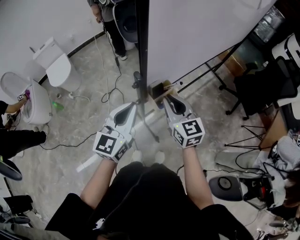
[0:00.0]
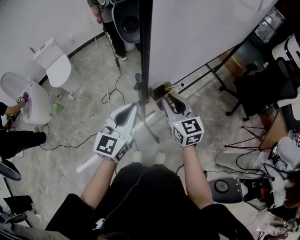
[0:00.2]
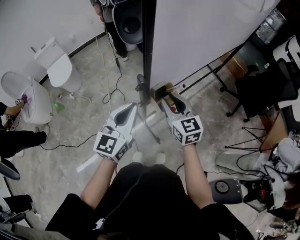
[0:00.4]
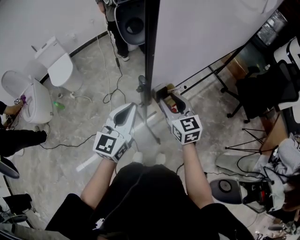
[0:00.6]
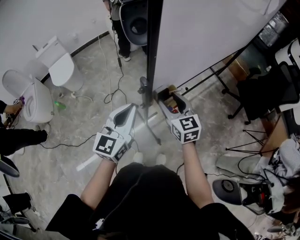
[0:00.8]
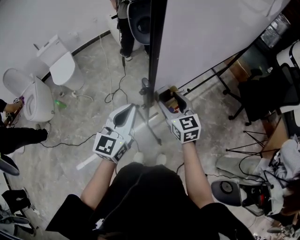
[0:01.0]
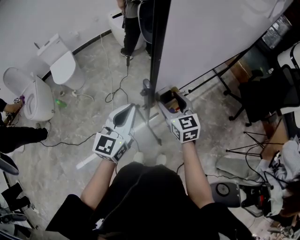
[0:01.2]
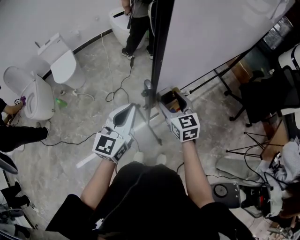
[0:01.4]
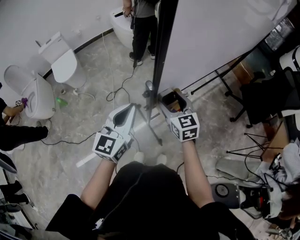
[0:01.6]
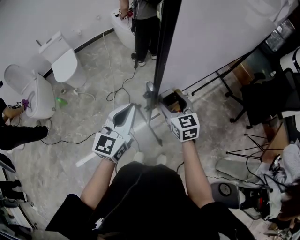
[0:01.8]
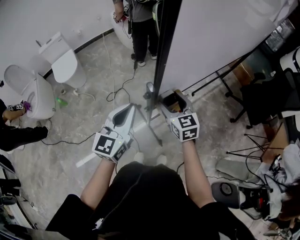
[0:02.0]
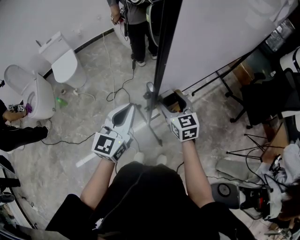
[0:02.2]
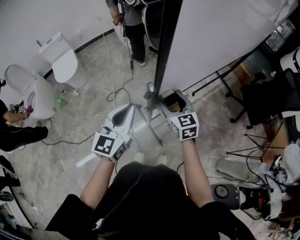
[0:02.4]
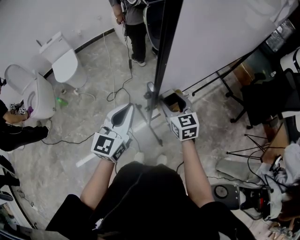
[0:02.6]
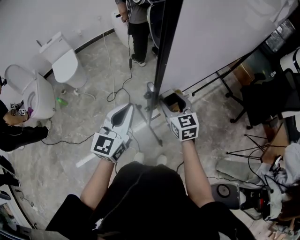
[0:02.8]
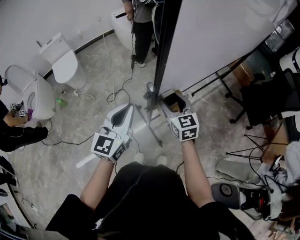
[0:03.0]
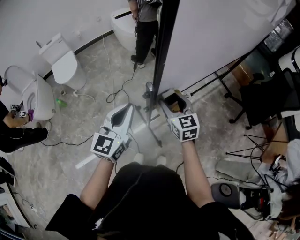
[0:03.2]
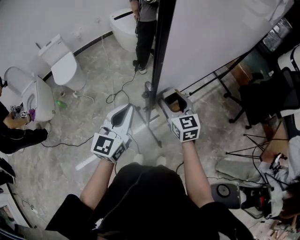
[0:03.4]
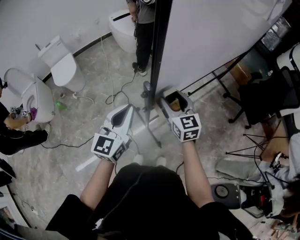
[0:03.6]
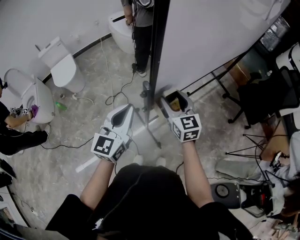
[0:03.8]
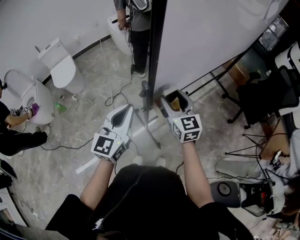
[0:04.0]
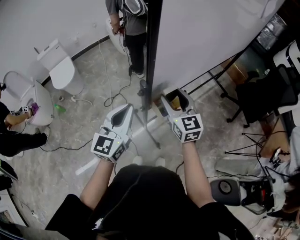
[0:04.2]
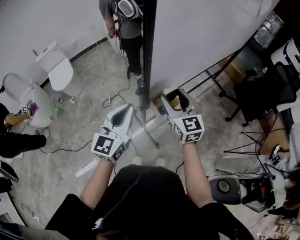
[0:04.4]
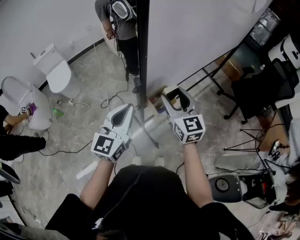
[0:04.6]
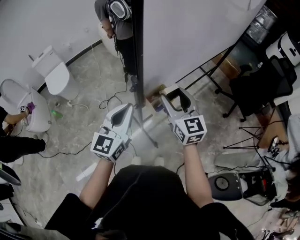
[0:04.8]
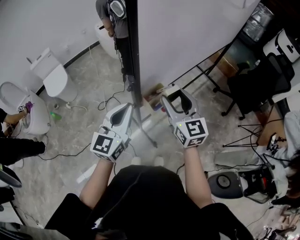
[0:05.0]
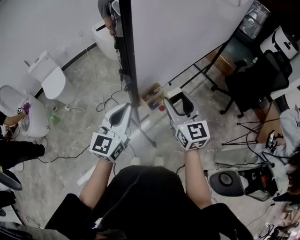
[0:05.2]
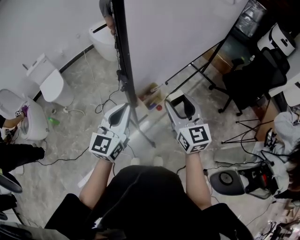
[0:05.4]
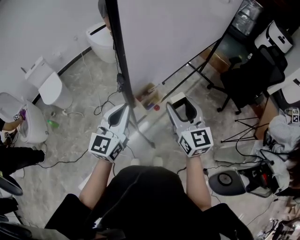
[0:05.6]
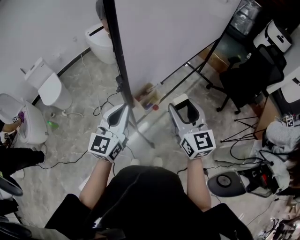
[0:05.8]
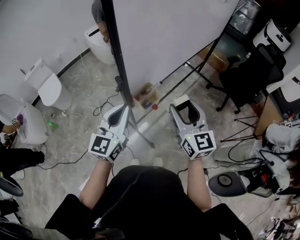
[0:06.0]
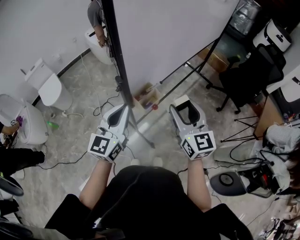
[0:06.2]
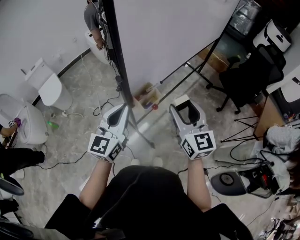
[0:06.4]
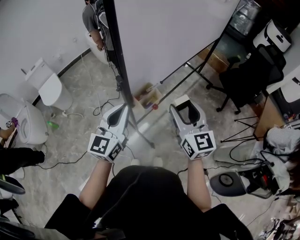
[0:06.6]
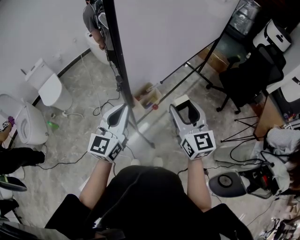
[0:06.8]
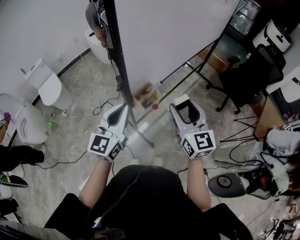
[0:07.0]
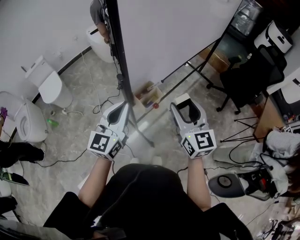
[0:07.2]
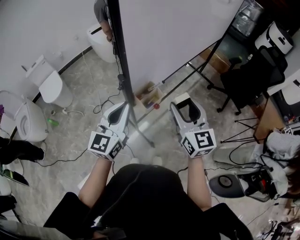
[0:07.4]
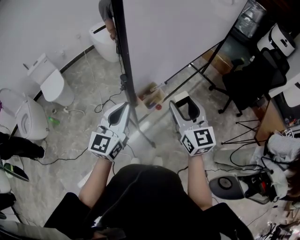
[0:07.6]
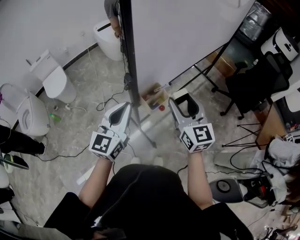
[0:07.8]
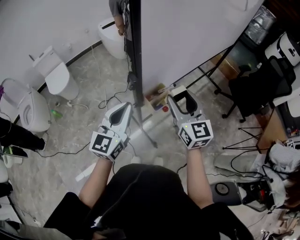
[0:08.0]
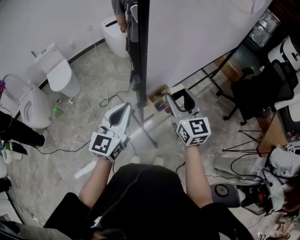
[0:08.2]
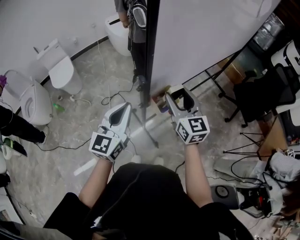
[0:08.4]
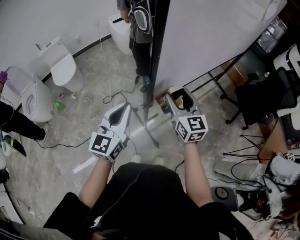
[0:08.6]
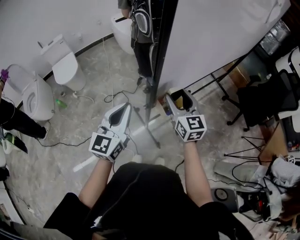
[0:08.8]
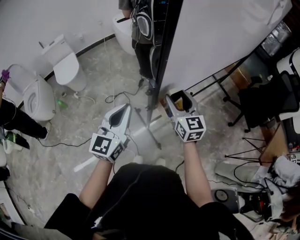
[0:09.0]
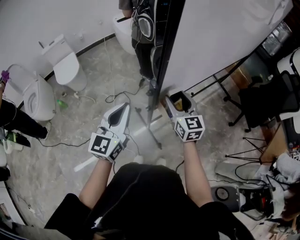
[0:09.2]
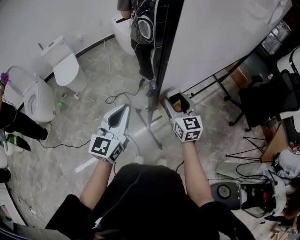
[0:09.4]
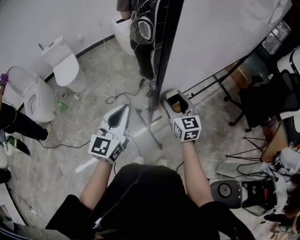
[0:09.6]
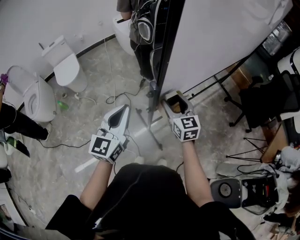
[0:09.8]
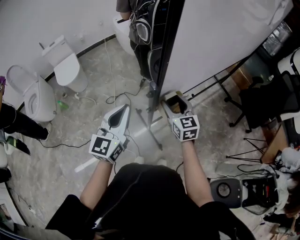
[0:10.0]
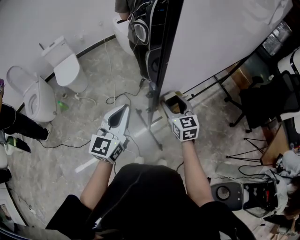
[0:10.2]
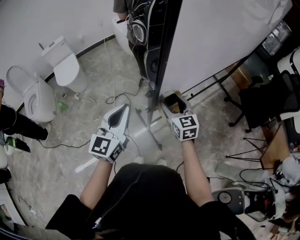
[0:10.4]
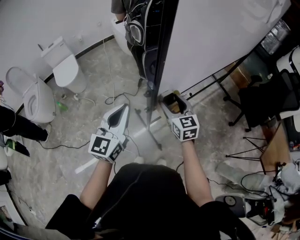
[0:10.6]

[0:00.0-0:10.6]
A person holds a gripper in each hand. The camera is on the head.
0:00.0 to 0:01.6: The left gripper moves roughly 5 cm. The right gripper heads forward, covering about 5 cm, and opens up.
0:01.6 to 0:03.0: The grippers make only small movements.
0:03.0 to 0:04.6: The left gripper changes place by some 5 cm. Meanwhile the right gripper heads upward and to the right, covering some 10 cm.
0:04.6 to 0:06.0: The right gripper travels to the right and backward by some 15 cm; the left gripper heads to the right, covering about 5 cm.
0:06.0 to 0:07.6: The grippers make only small movements.
0:07.6 to 0:09.0: The left gripper travels to the left by about 10 cm; the right gripper heads to the left, forward and downward, covering some 15 cm.
0:09.0 to 0:10.6: The right gripper heads downward, covering some 5 cm.

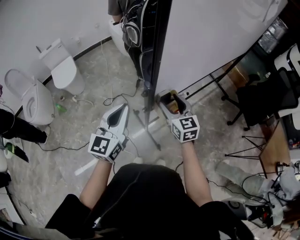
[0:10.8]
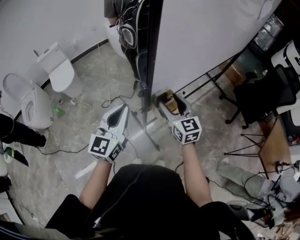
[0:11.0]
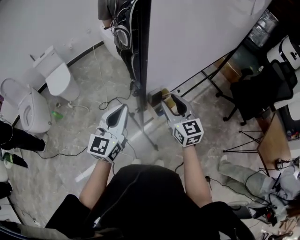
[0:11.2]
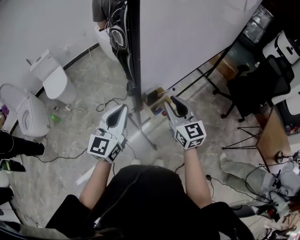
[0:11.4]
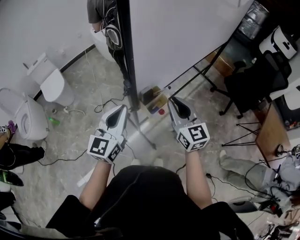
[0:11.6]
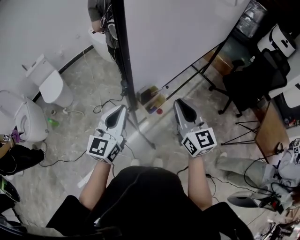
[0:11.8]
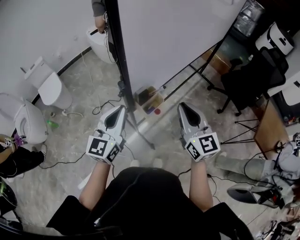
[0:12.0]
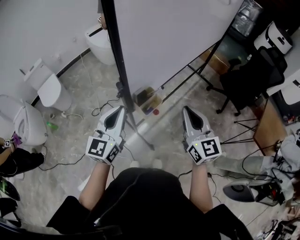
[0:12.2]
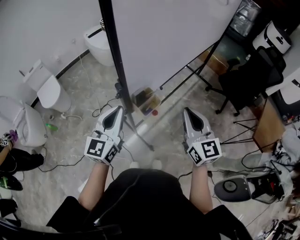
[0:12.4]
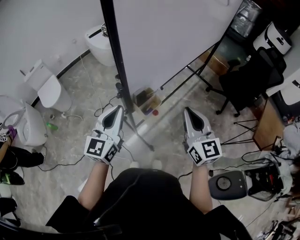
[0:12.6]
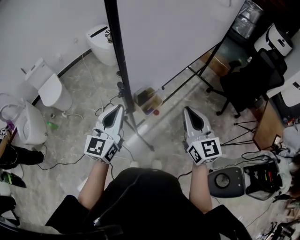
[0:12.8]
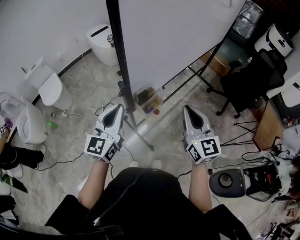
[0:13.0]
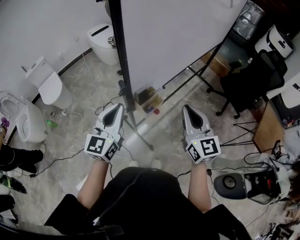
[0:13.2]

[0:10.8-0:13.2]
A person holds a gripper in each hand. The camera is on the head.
0:10.8 to 0:12.0: The left gripper is displaced to the right by about 5 cm; the right gripper travels to the right, upward and backward by roughly 20 cm, and closes its fingers.
0:12.0 to 0:13.2: The grippers move only a little.

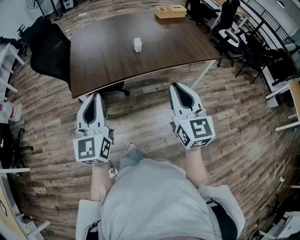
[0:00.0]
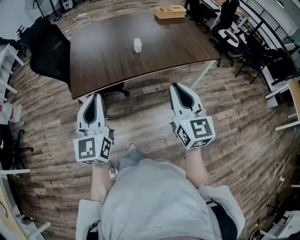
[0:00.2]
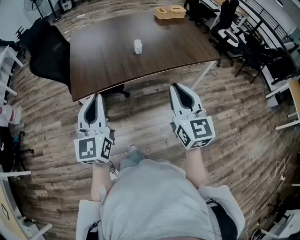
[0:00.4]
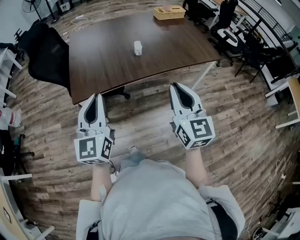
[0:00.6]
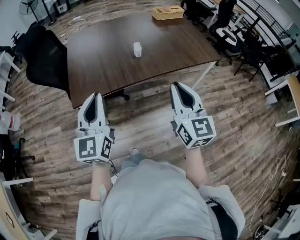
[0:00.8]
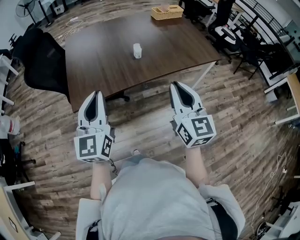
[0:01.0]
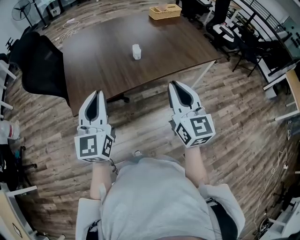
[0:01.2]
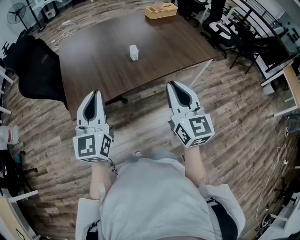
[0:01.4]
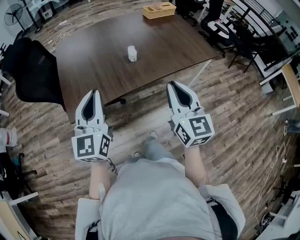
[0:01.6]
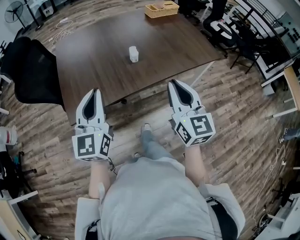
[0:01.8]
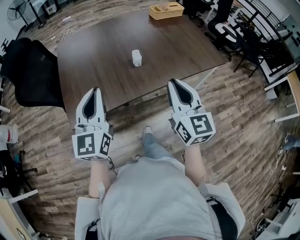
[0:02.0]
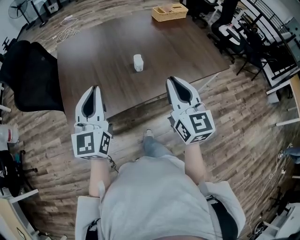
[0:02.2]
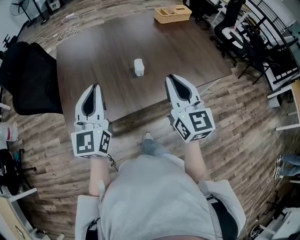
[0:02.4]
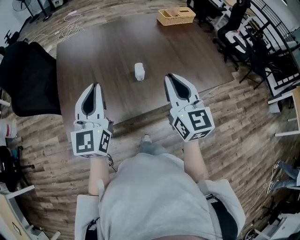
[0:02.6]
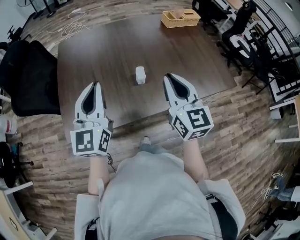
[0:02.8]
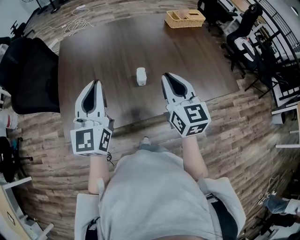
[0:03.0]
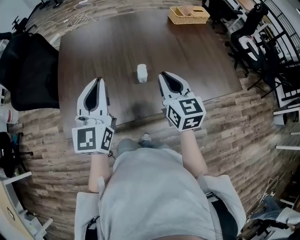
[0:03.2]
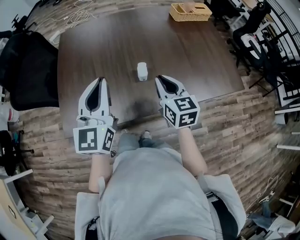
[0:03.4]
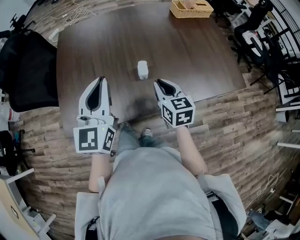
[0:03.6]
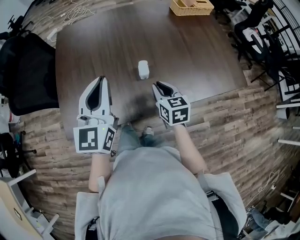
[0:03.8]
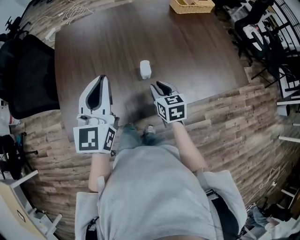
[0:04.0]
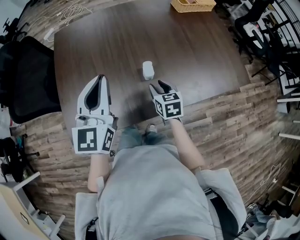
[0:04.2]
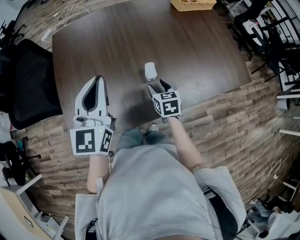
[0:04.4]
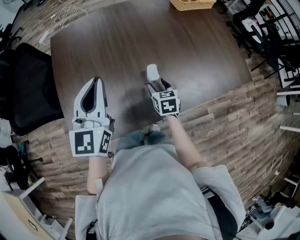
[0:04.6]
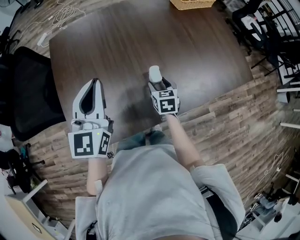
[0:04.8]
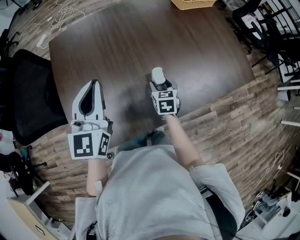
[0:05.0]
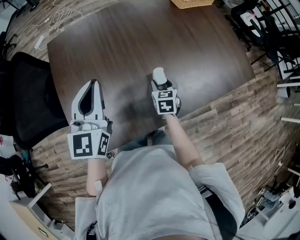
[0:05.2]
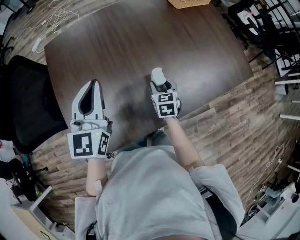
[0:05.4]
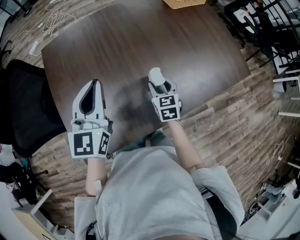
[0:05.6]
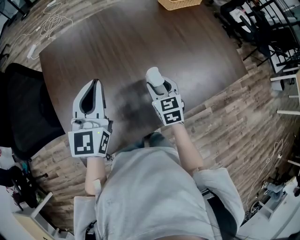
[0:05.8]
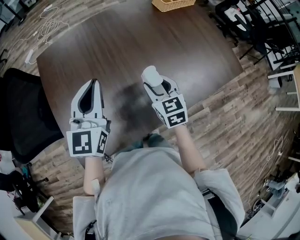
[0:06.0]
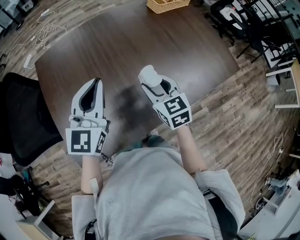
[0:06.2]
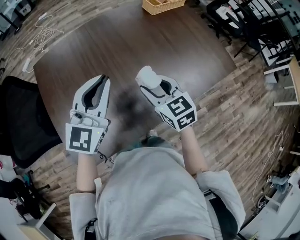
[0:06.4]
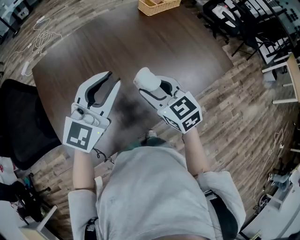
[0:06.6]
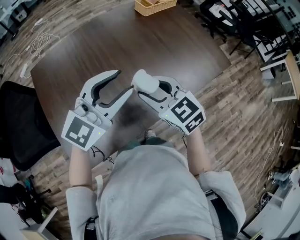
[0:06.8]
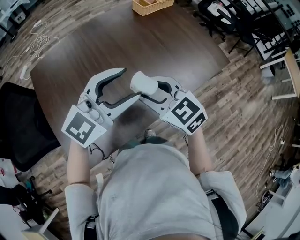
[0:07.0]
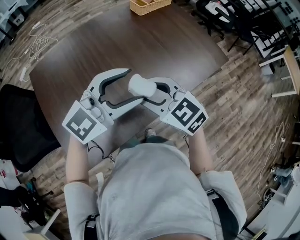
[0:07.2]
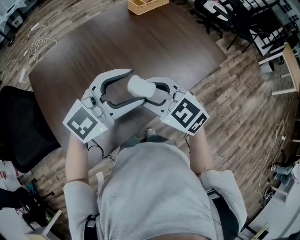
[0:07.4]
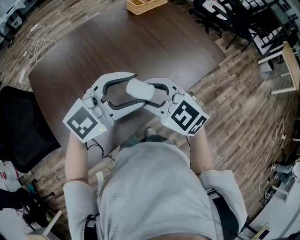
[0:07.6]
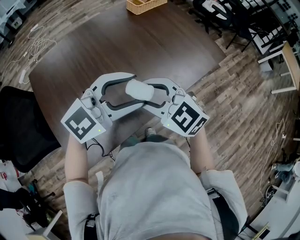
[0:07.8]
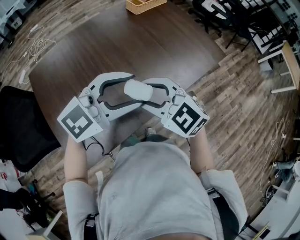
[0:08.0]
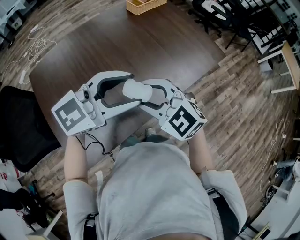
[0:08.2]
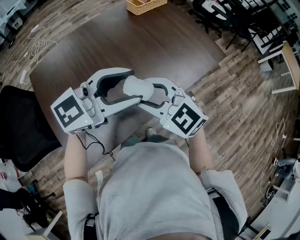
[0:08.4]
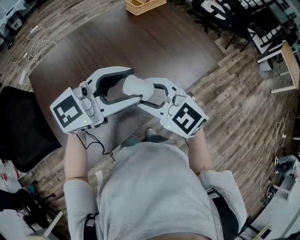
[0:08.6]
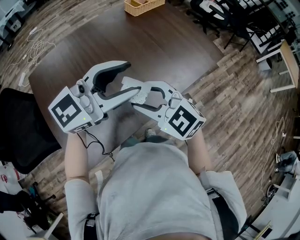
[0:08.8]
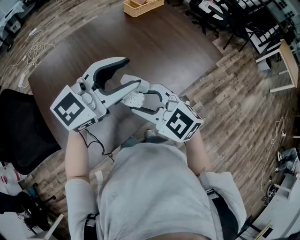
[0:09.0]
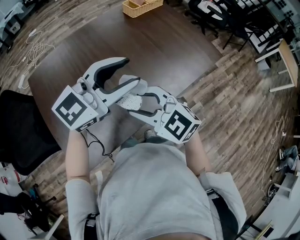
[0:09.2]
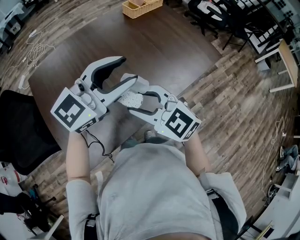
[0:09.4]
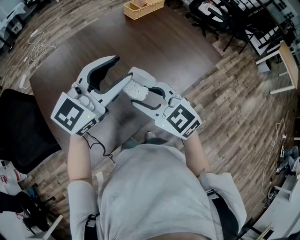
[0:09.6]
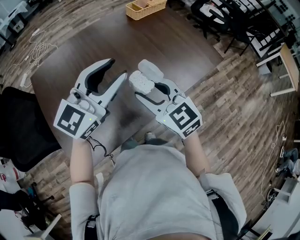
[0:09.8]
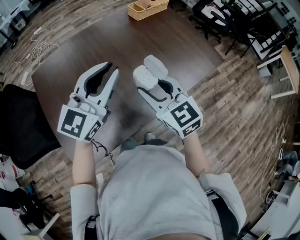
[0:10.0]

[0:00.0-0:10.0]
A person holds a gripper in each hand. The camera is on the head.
0:00.0 to 0:01.4: The two grippers go some 10 cm forward.
0:01.4 to 0:02.8: Both grippers travel together forward, approximately 25 cm.
0:02.8 to 0:04.2: The left gripper goes approximately 5 cm forward. Meanwhile the right gripper heads downward, covering roughly 25 cm, tips its fingers downward by about 30 degrees, and opens its fingers.
0:04.2 to 0:05.8: The grippers both shift forward by roughly 5 cm.
0:05.8 to 0:07.2: The left gripper moves to the right, some 20 cm, turns by about 60 degrees, and opens. The right gripper travels upward and backward by roughly 20 cm, and swivels roughly 30 degrees.
0:07.2 to 0:08.6: The grippers move only a little.
0:08.6 to 0:10.0: The left gripper shifts by roughly 5 cm, changes its angle by some 40 degrees, and closes its fingers; the right gripper turns by about 20 degrees.
